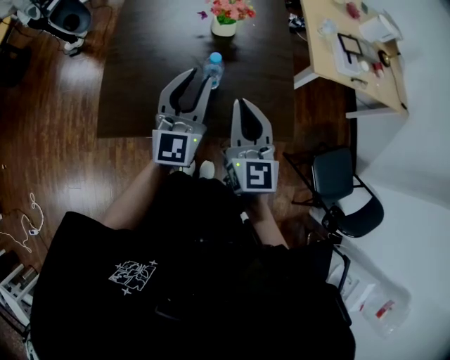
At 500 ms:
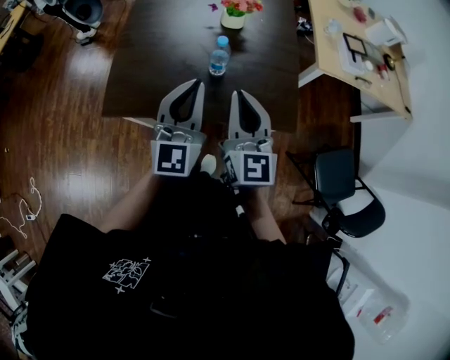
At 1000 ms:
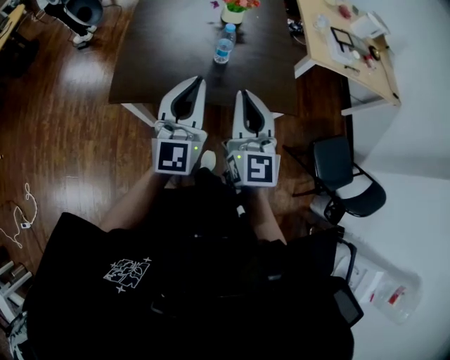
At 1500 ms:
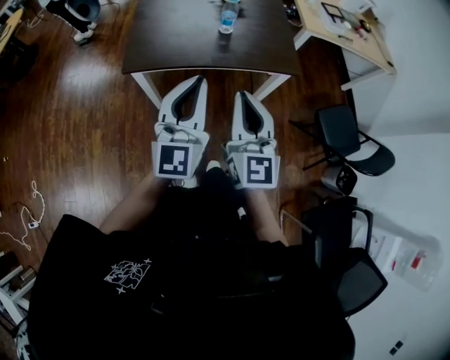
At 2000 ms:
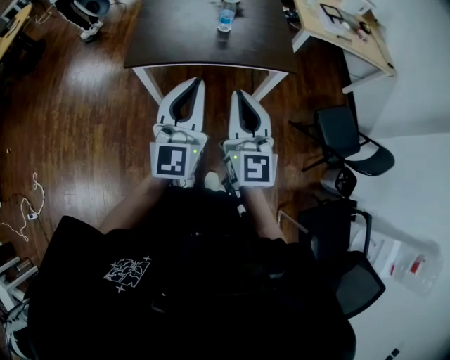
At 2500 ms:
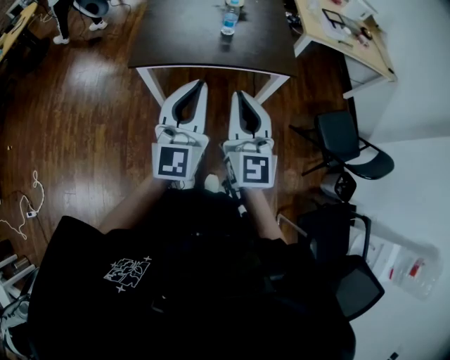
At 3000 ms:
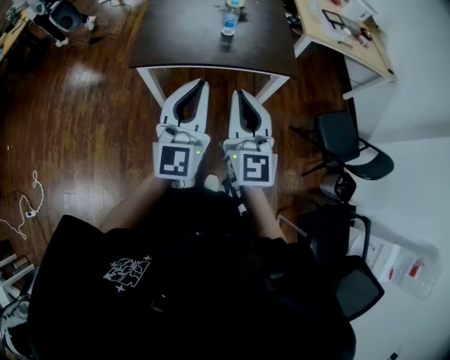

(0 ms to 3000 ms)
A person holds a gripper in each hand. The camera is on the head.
0 ms - 1500 ms: The grippers both shift backward by roughly 35 cm. The left gripper closes.
1500 ms - 3000 ms: The left gripper heads backward, covering approximately 5 cm.

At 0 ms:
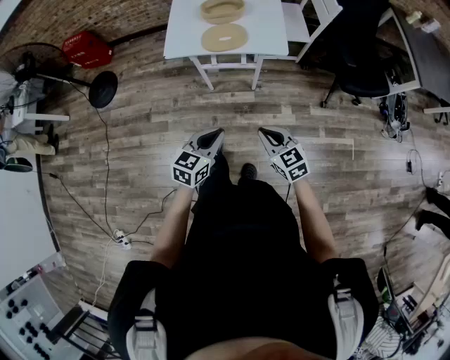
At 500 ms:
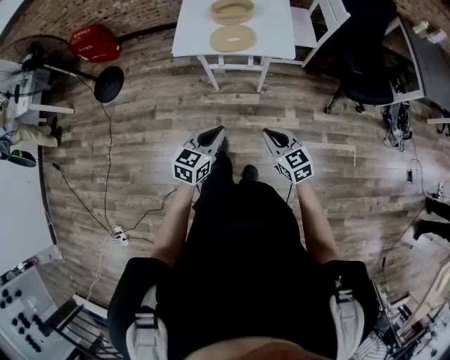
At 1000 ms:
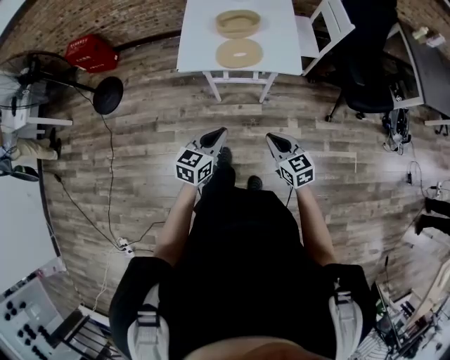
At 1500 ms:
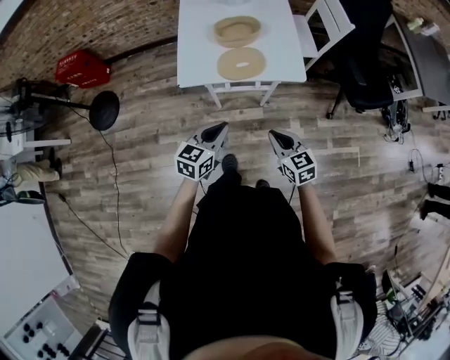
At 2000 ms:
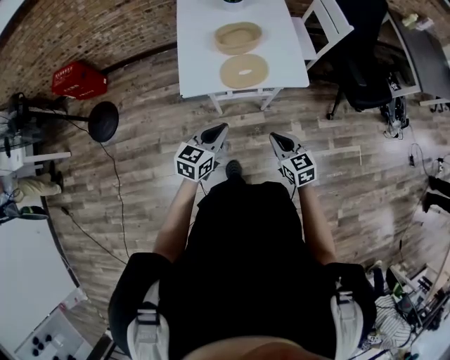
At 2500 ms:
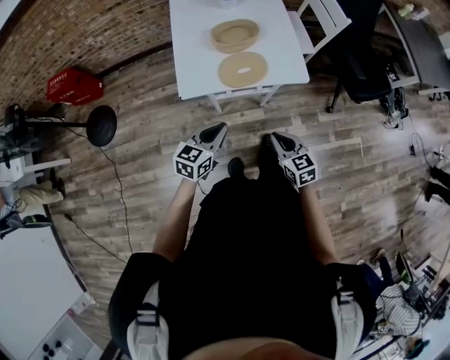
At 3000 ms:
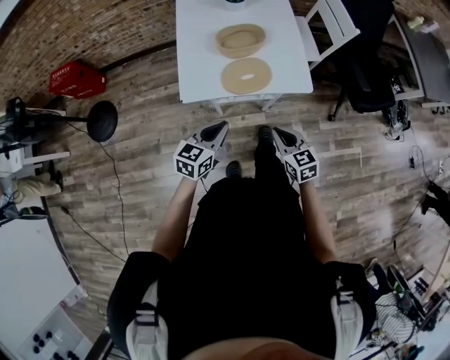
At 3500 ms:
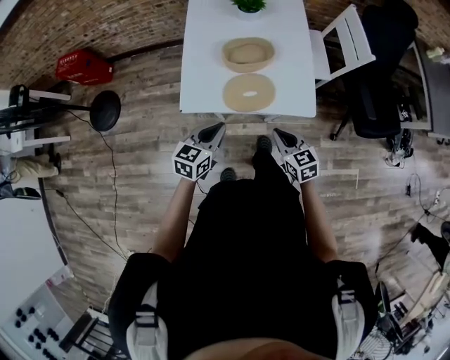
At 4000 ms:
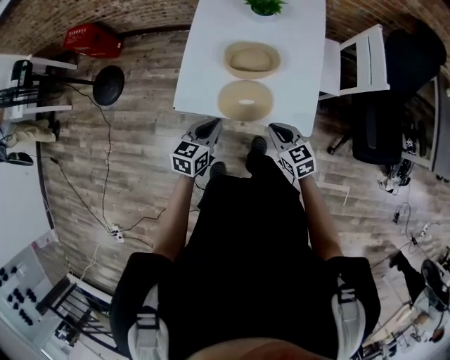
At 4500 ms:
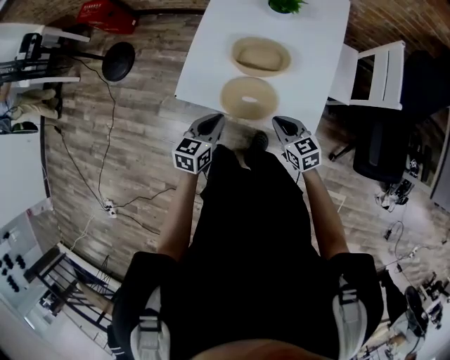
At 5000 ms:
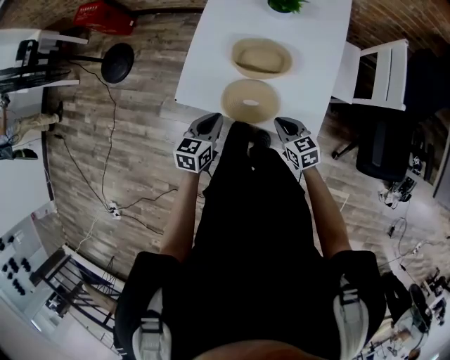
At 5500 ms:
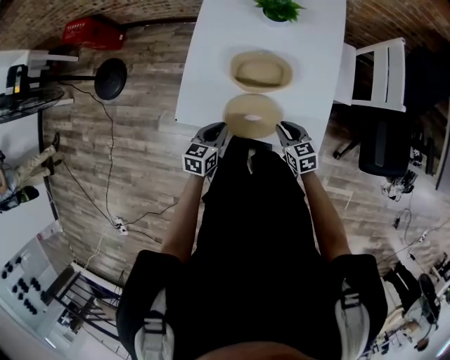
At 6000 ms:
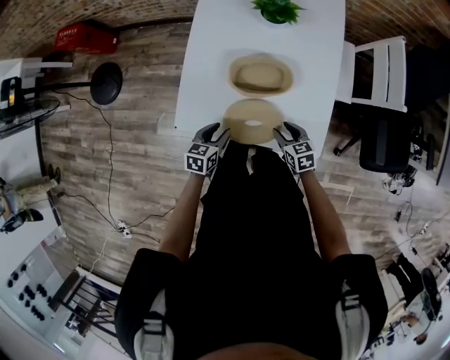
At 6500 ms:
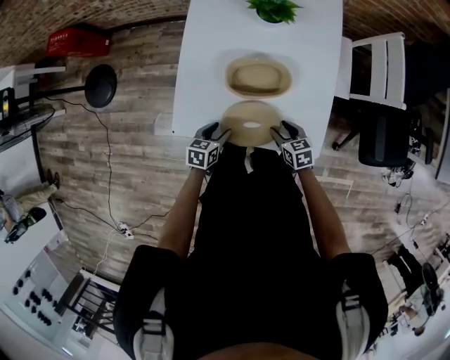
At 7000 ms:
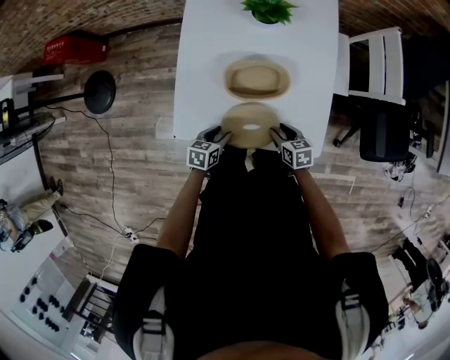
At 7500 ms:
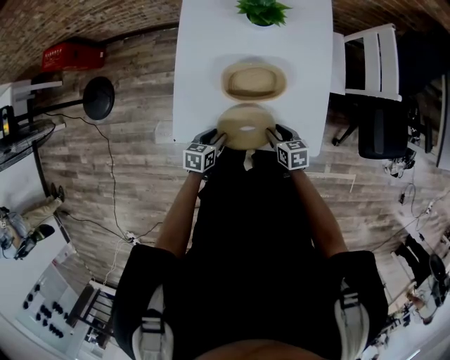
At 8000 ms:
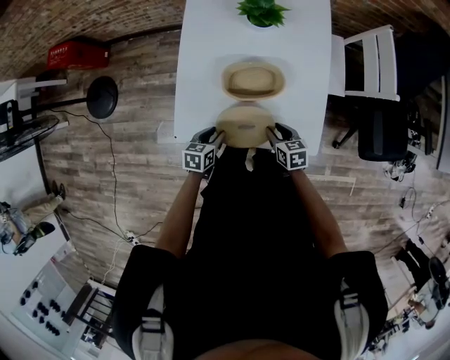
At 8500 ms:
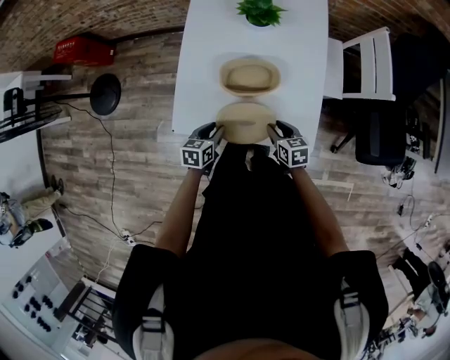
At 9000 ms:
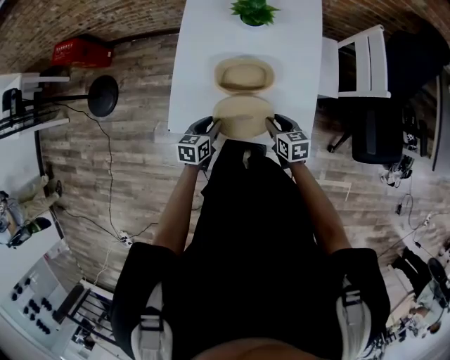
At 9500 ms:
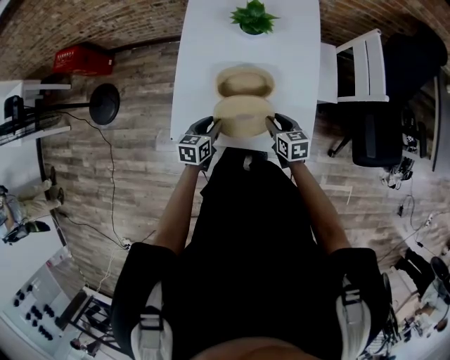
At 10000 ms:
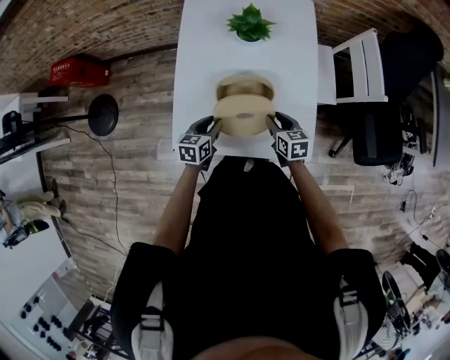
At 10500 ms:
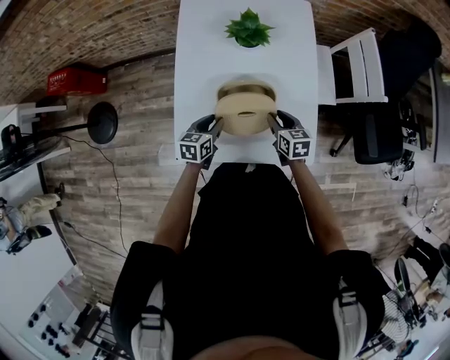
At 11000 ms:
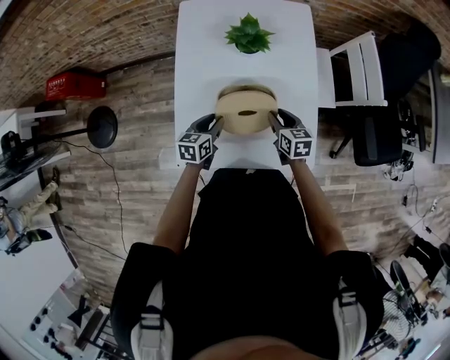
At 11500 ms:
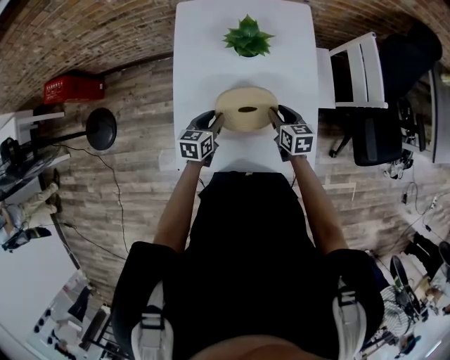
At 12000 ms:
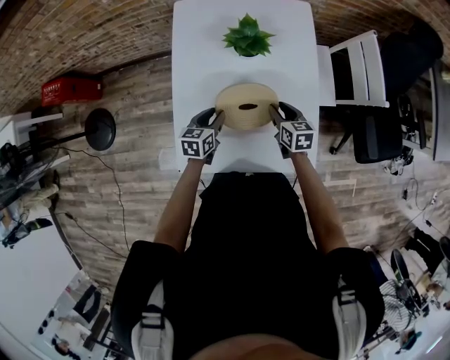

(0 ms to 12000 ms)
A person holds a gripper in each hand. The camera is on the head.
0 ms - 2000 ms: Both grippers move forward and to the left, roughly 25 cm.
2000 ms - 4000 ms: Both grippers travel together forward, approximately 25 cm. The right gripper rotates roughly 20 degrees, while the left gripper turns by some 20 degrees.
4000 ms - 6000 ms: The grippers both shift downward and forward by approximately 15 cm. The left gripper opens up. Meanwhile the right gripper opens its fingers.
6000 ms - 8000 ms: There are only small adjustments of the grippers.
8000 ms - 10000 ms: The grippers both shift forward and upward by approximately 10 cm.
10000 ms - 12000 ms: Both grippers travel together forward, roughly 10 cm.

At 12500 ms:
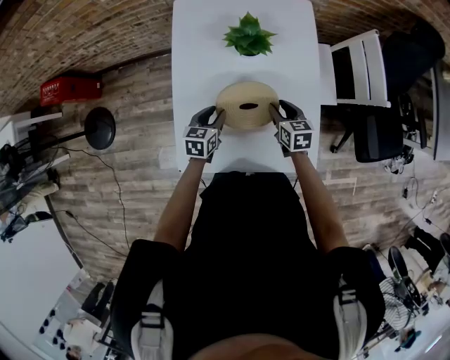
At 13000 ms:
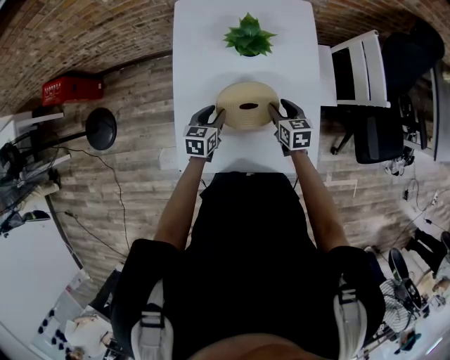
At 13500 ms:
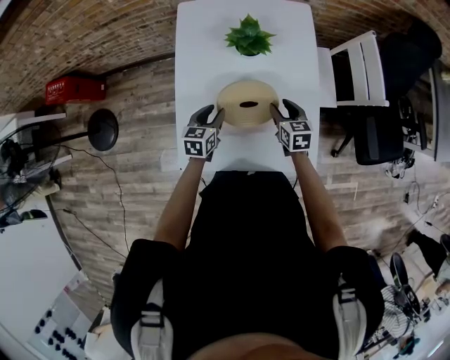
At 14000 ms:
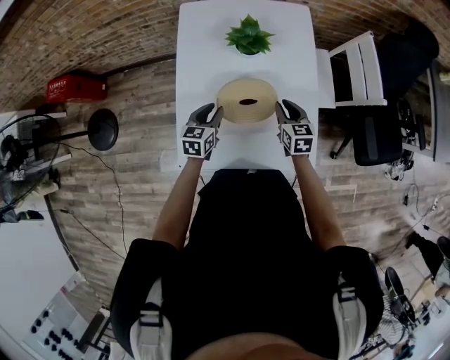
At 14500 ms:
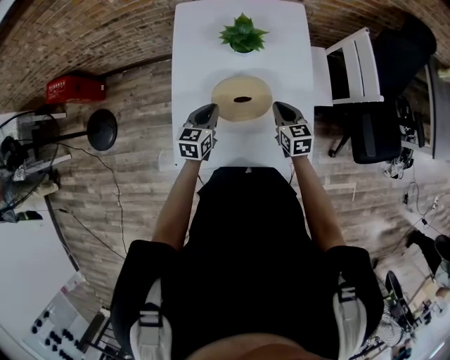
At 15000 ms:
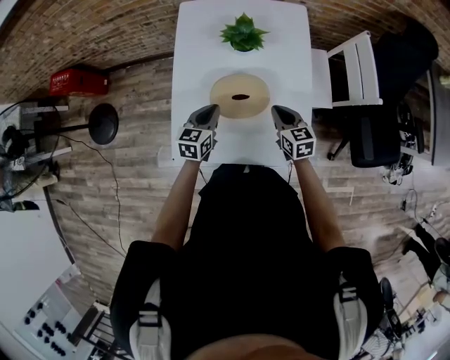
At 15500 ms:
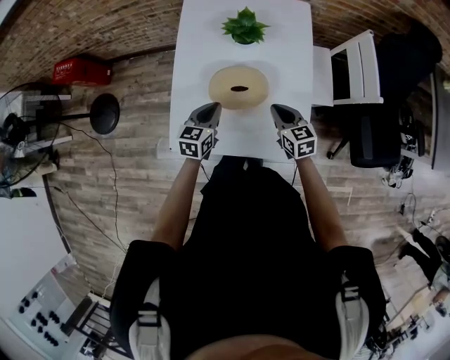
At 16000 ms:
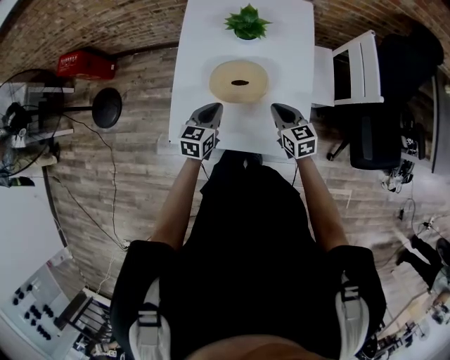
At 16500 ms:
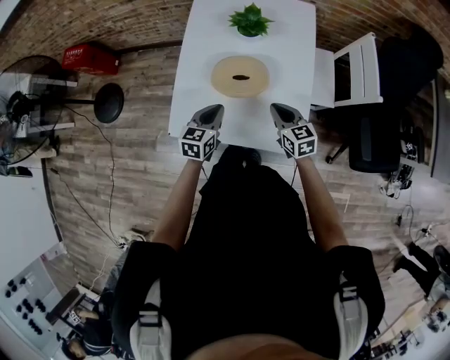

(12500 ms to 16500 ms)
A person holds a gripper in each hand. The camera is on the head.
12500 ms - 14500 ms: The left gripper heads upward, covering some 5 cm, and closes its fingers. Meanwhile the right gripper ends up about 5 cm from where it was, and closes its fingers.
14500 ms - 16500 ms: The two grippers go about 10 cm backward.

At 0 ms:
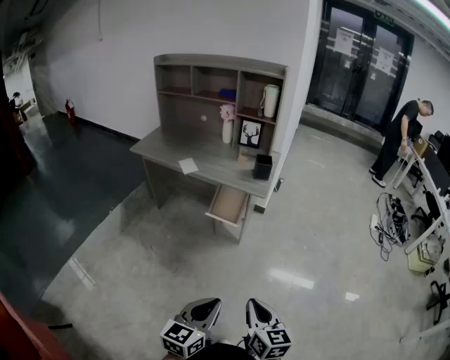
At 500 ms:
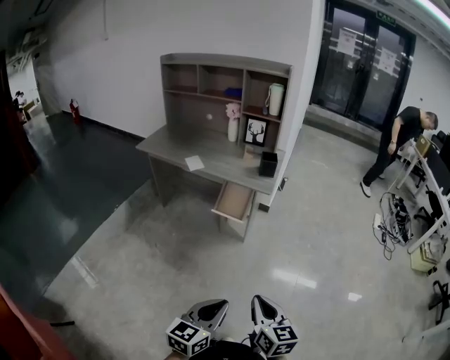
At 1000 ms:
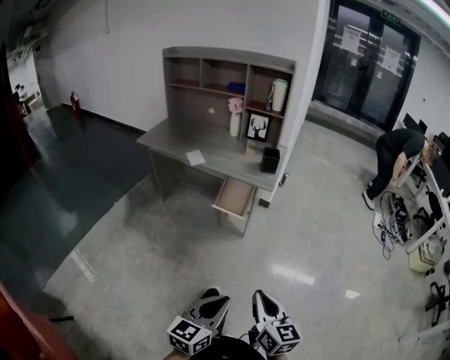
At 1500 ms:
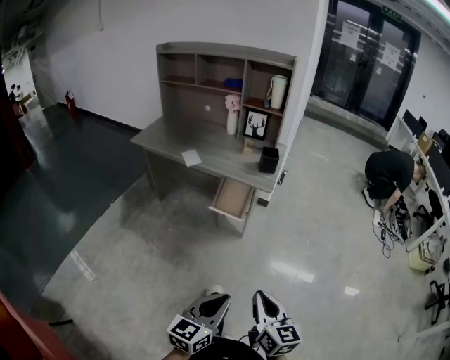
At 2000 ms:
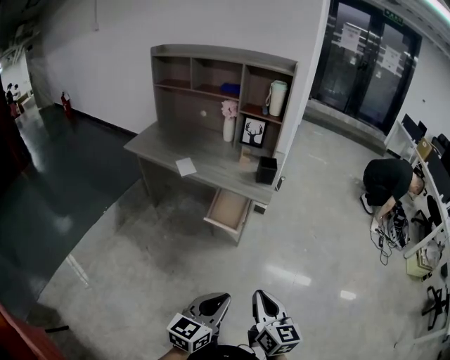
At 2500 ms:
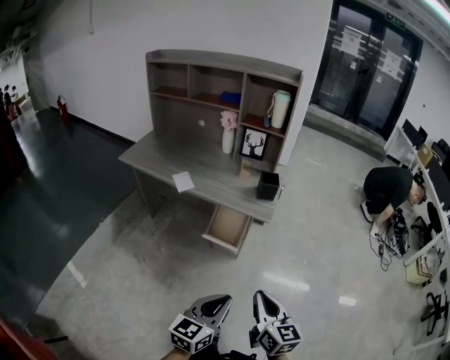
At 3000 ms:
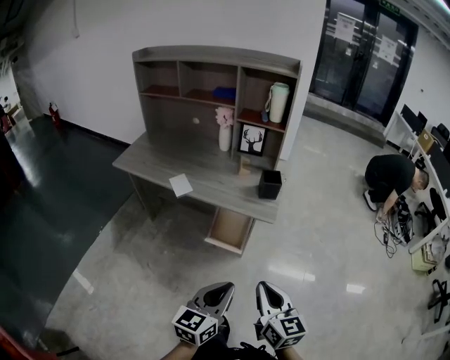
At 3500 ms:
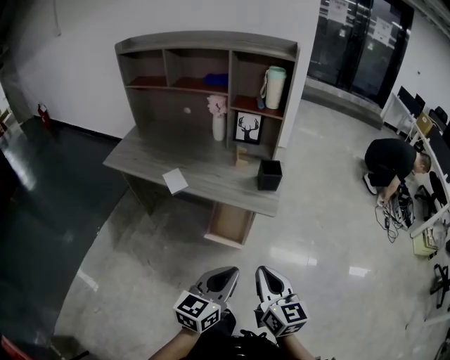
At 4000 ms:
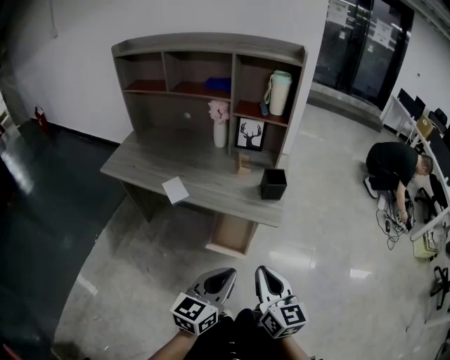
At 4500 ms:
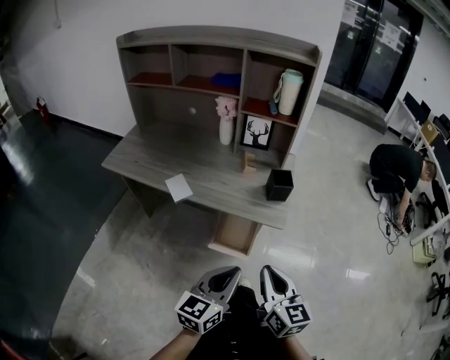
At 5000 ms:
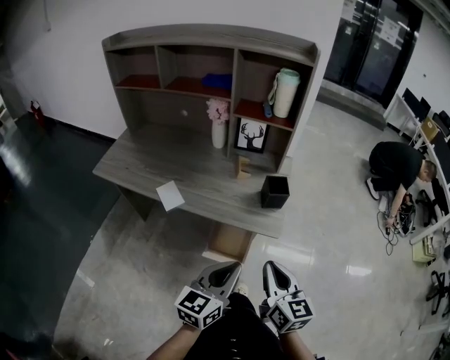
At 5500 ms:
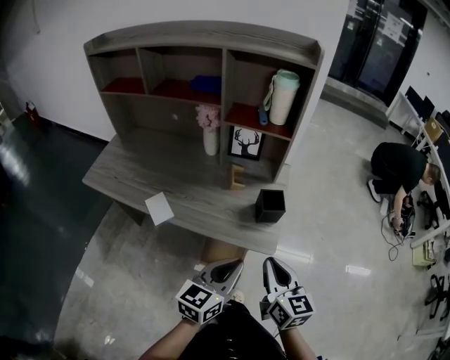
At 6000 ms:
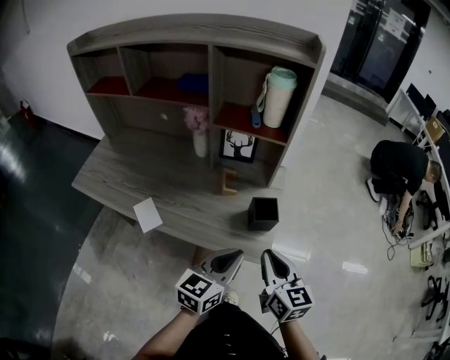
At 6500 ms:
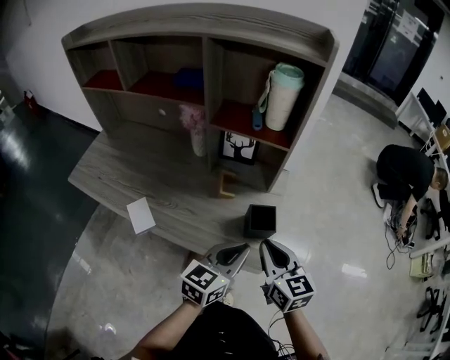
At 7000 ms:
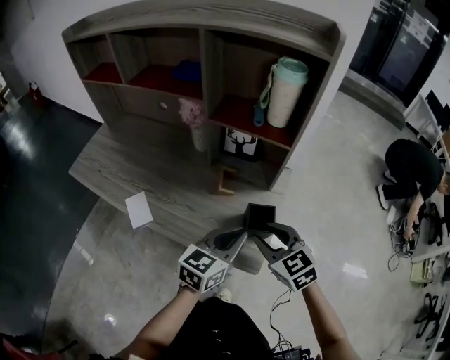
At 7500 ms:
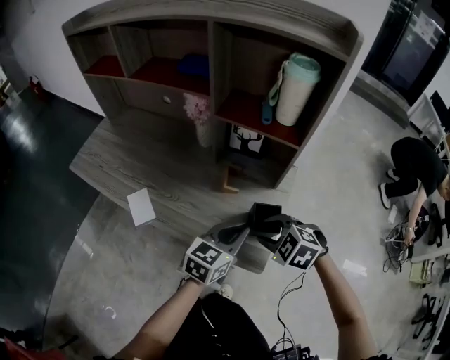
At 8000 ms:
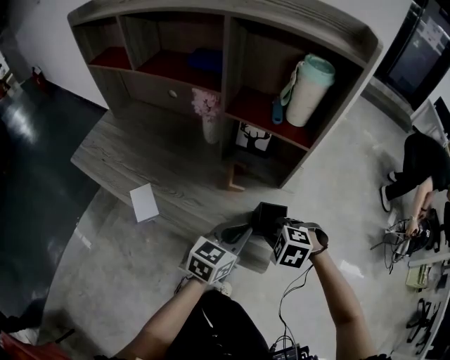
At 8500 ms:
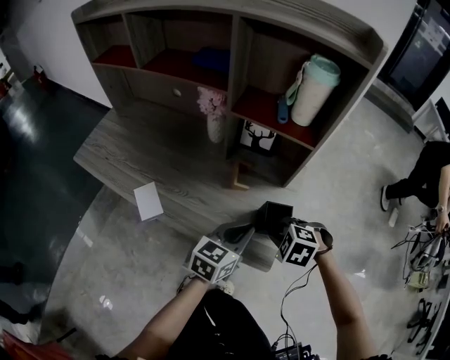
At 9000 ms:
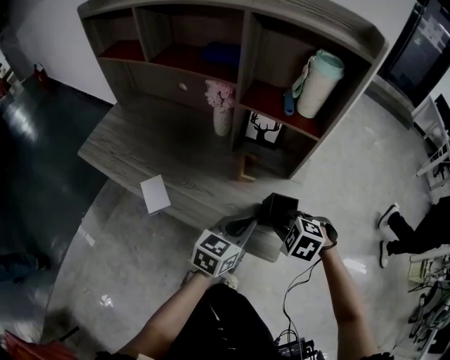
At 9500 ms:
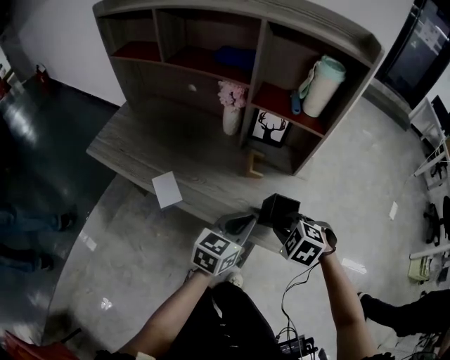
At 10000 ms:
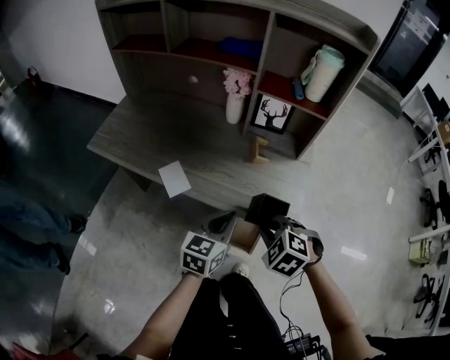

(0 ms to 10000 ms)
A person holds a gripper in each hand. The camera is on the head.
0 ms - 2000 ms: The two grippers go some 10 cm forward.
2000 ms - 4000 ms: The grippers both shift forward by roughly 25 cm.
4000 ms - 6000 ms: The grippers both shift forward by approximately 25 cm.
6000 ms - 8000 ms: The left gripper shifts approximately 15 cm forward and downward, while the right gripper travels downward and forward by some 15 cm, points its fingers some 60 degrees further downward, and opens, then closes once more.
8000 ms - 10000 ms: The two grippers go approximately 20 cm to the left and backward.
